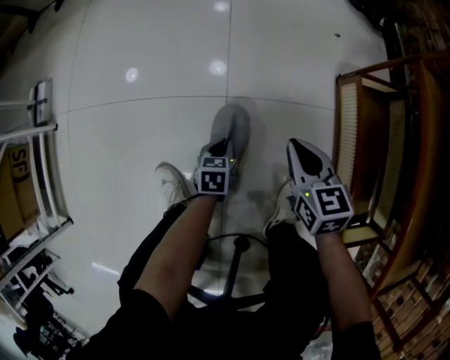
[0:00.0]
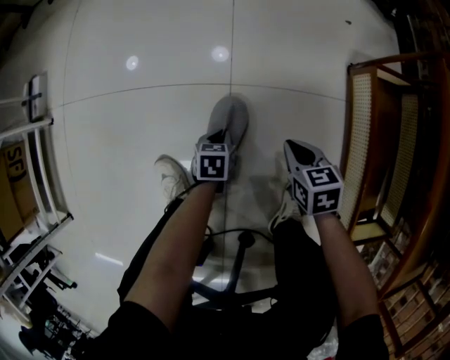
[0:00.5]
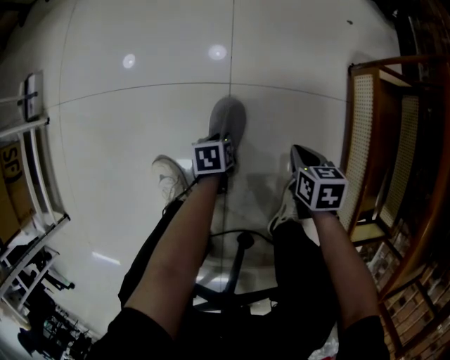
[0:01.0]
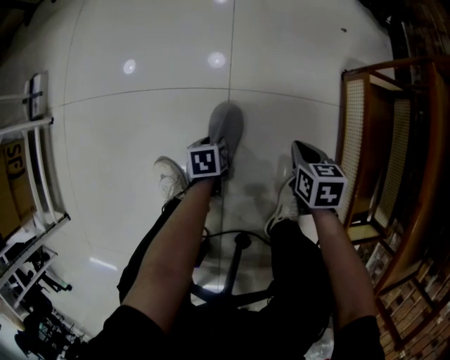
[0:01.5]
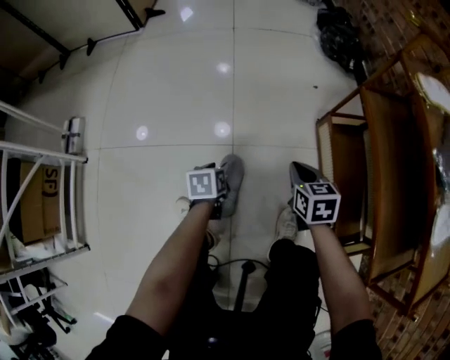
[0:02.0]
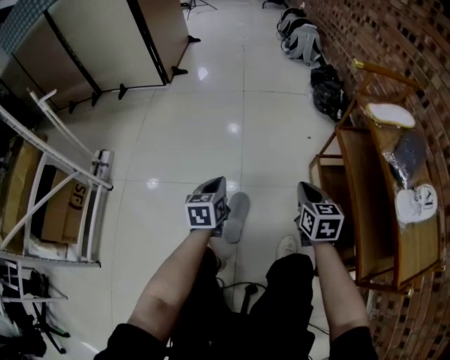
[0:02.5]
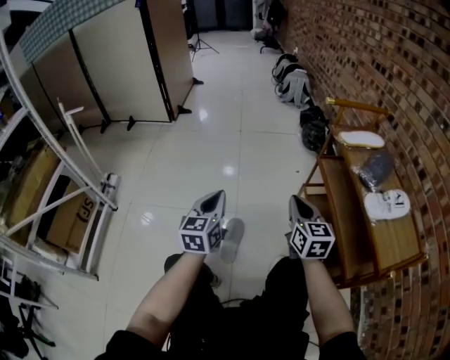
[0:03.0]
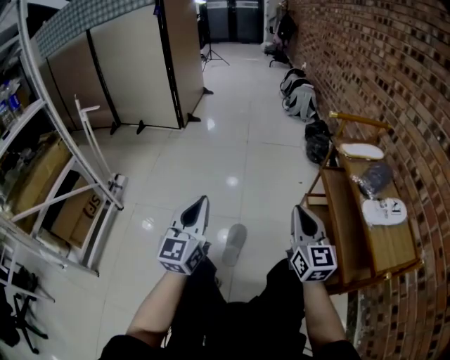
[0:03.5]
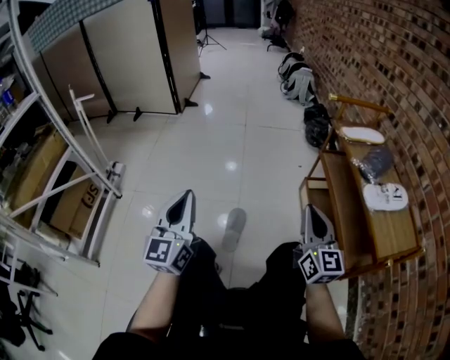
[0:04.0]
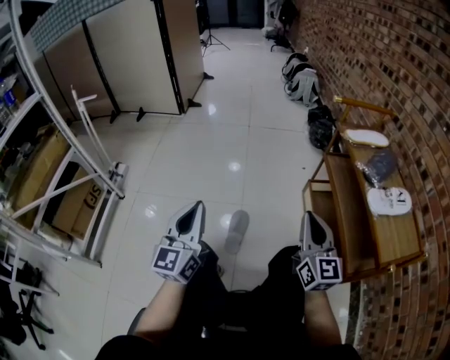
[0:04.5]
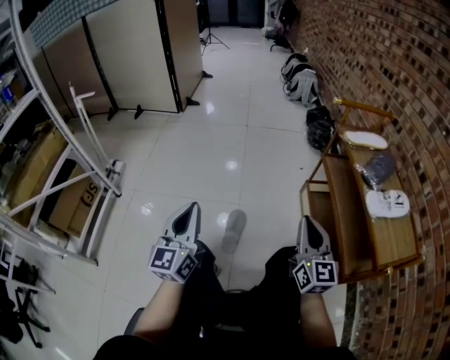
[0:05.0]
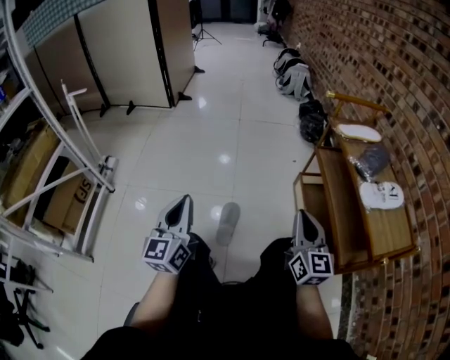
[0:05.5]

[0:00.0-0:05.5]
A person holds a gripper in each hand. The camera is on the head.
0:00.0 to 0:02.0: The left gripper travels upward by roughly 15 cm, and opens its fingers. The right gripper travels downward and back again, approximately 15 cm each way.
0:02.0 to 0:03.5: The right gripper moves upward and backward, some 40 cm, and points its fingers about 50 degrees further upward, while the left gripper travels upward by roughly 50 cm, points its fingers approximately 60 degrees further upward, and closes.
0:03.5 to 0:05.5: The left gripper shifts by some 5 cm. The right gripper shifts by approximately 5 cm.

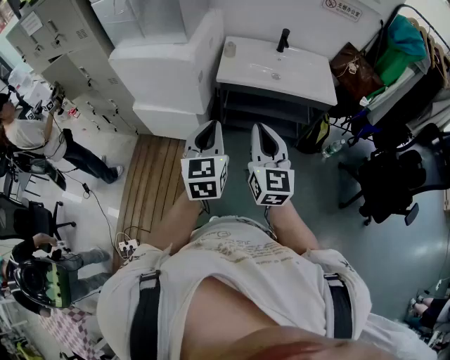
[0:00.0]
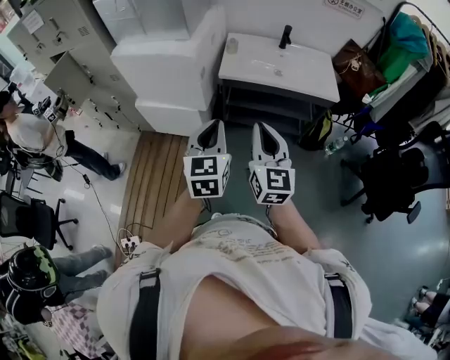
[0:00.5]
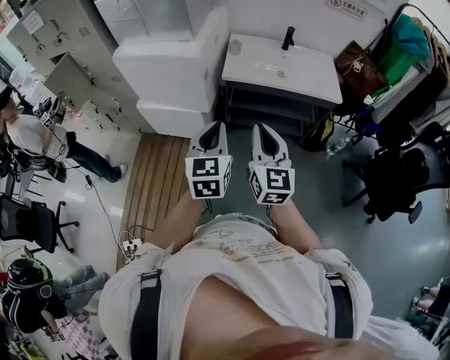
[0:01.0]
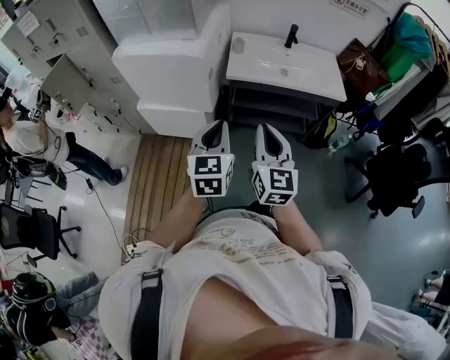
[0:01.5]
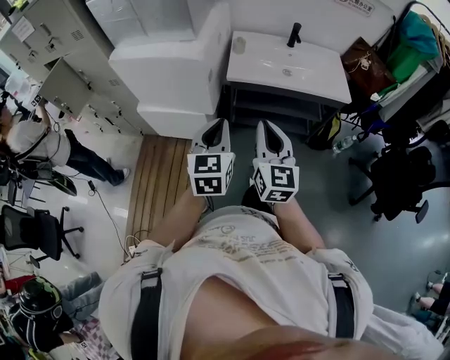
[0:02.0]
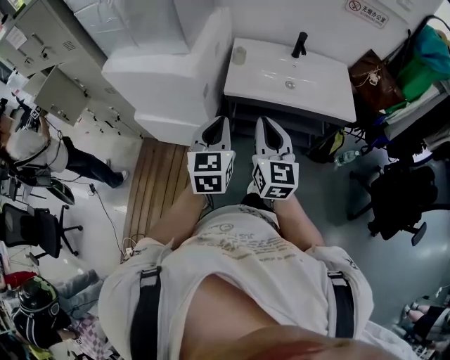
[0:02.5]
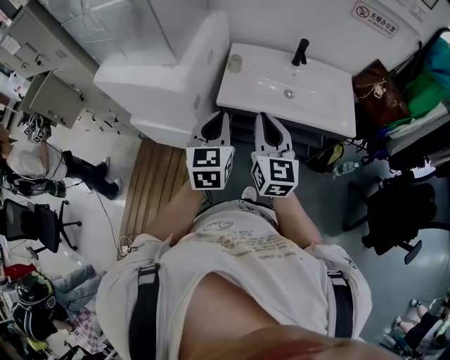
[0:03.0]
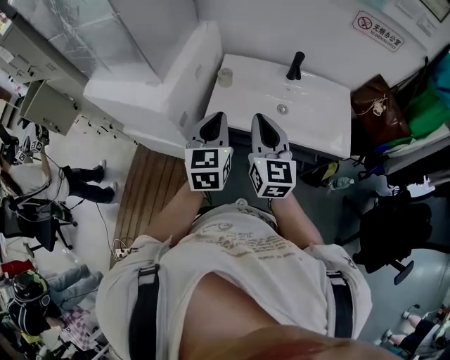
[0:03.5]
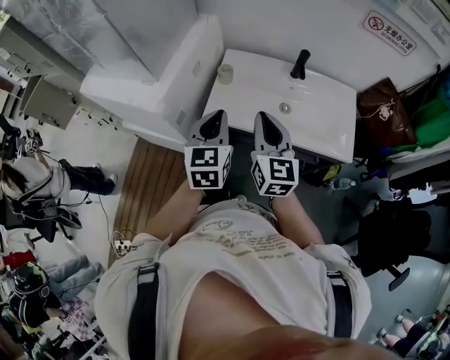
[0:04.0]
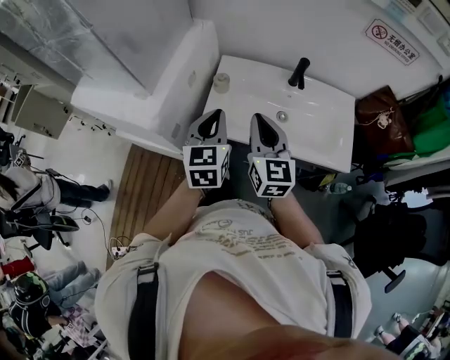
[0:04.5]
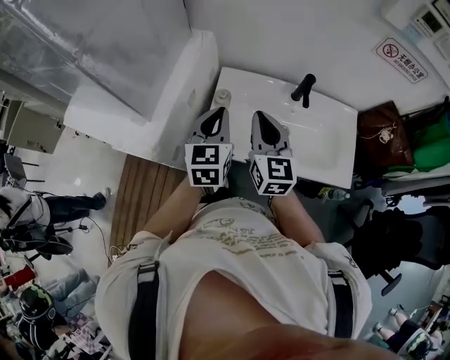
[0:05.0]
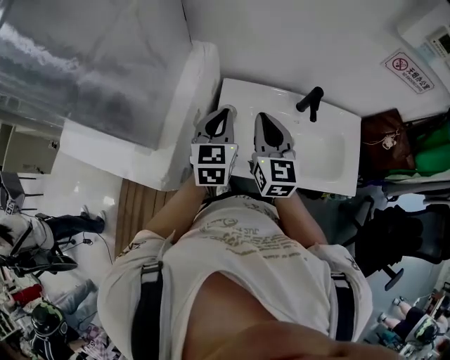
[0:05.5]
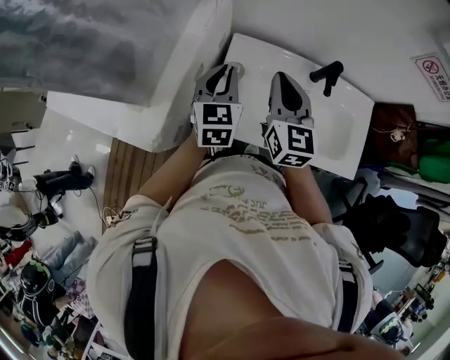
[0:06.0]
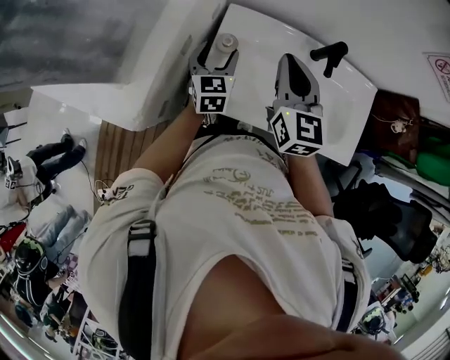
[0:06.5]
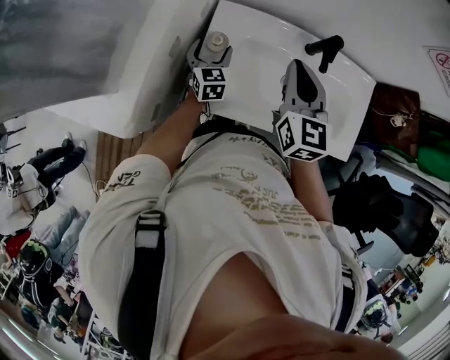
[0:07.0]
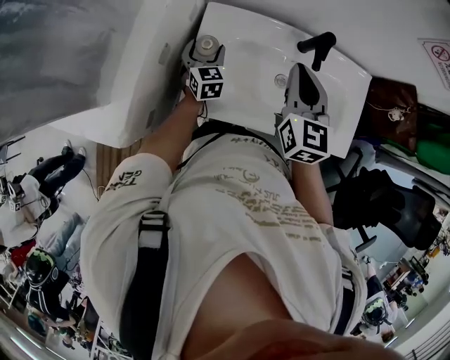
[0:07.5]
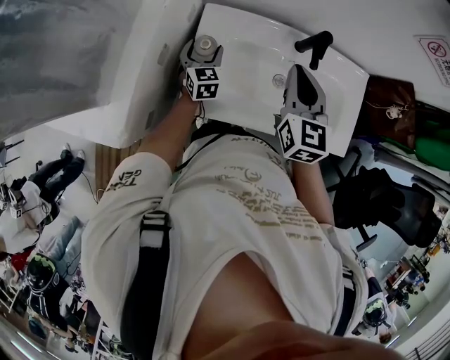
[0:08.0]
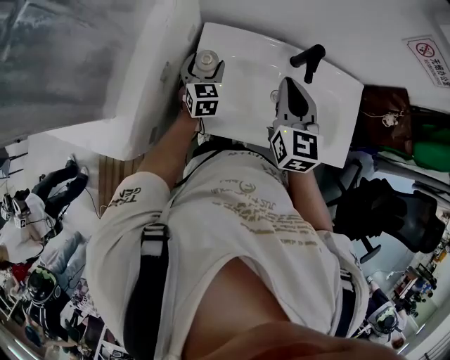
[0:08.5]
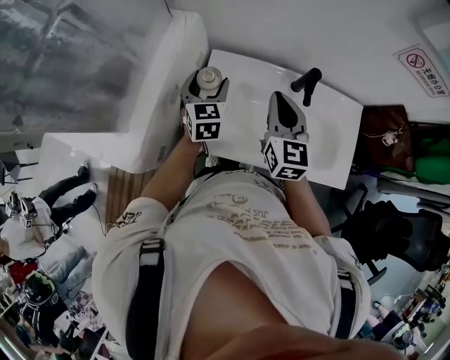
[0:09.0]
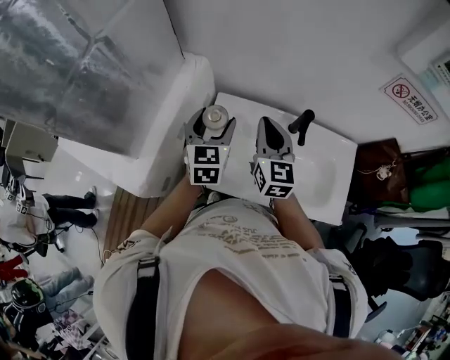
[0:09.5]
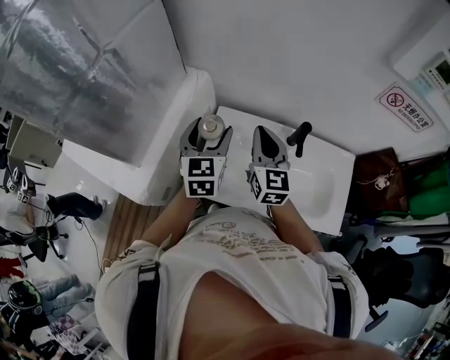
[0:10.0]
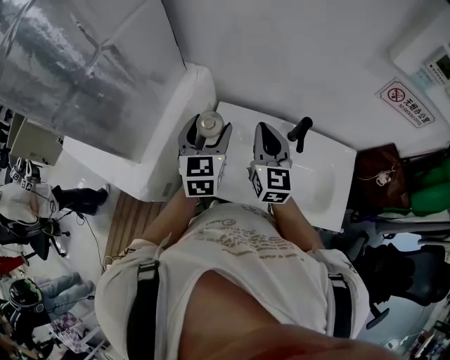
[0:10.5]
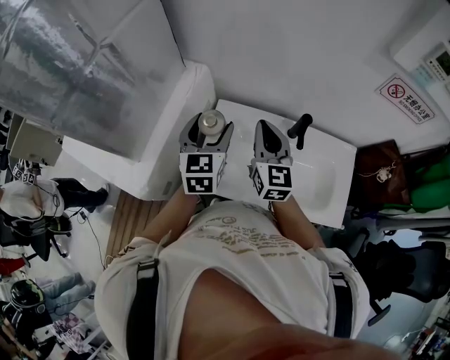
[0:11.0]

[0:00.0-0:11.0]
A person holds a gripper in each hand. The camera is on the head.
0:00.0 to 0:02.0: Both grippers travel together forward, approximately 5 cm.
0:02.0 to 0:03.5: The left gripper is displaced forward and to the right by approximately 30 cm. The right gripper goes approximately 25 cm forward.
0:03.5 to 0:05.5: The two grippers go approximately 25 cm forward.
0:05.5 to 0:07.5: The right gripper heads to the right, covering about 10 cm; the left gripper travels downward by roughly 25 cm, and opens its fingers.
0:07.5 to 0:09.0: The left gripper heads upward, covering roughly 15 cm.
0:09.0 to 0:11.0: The left gripper moves upward and backward, about 15 cm.

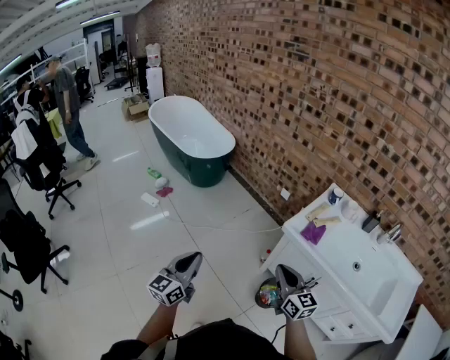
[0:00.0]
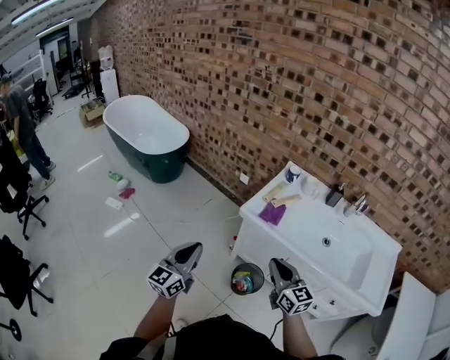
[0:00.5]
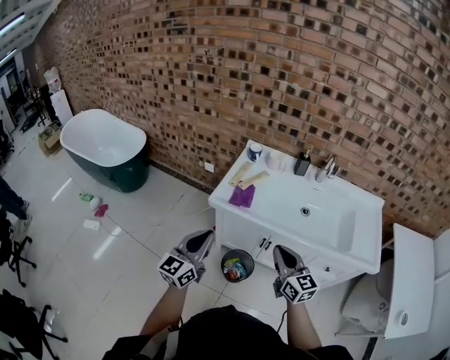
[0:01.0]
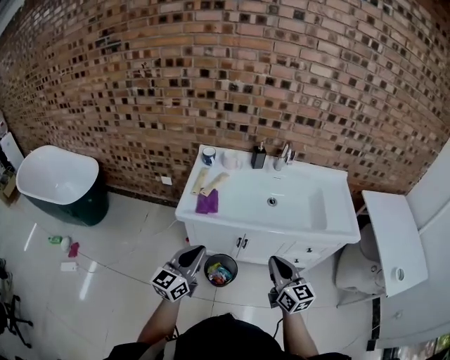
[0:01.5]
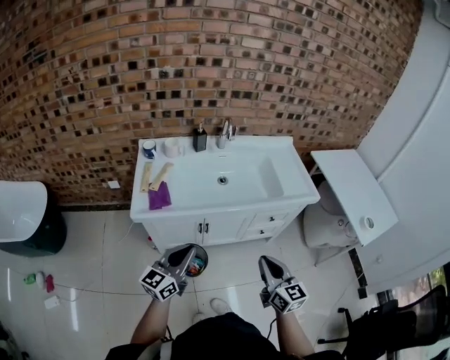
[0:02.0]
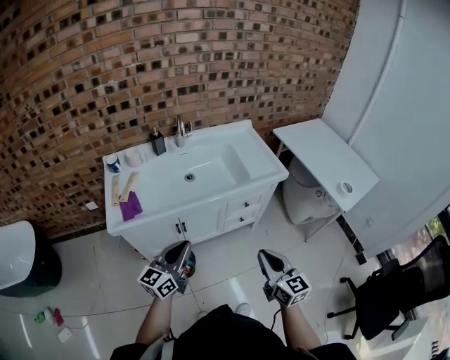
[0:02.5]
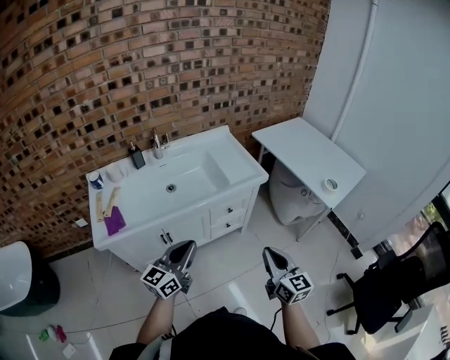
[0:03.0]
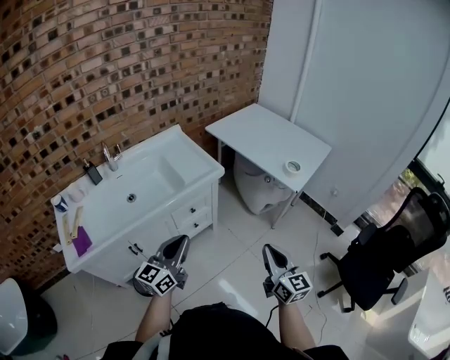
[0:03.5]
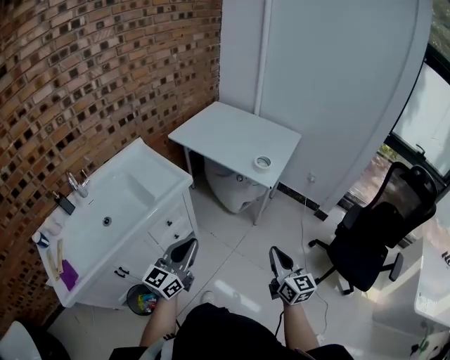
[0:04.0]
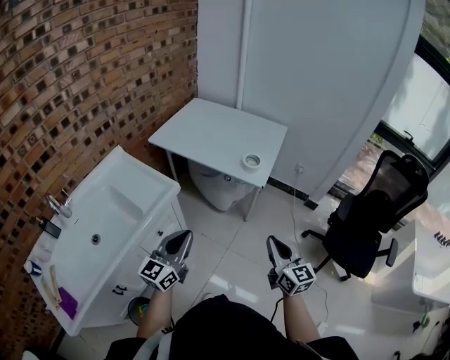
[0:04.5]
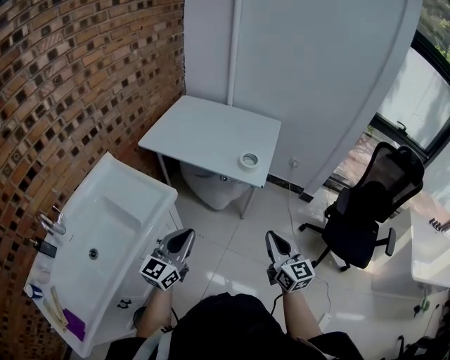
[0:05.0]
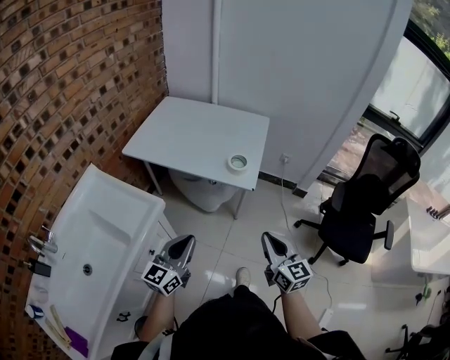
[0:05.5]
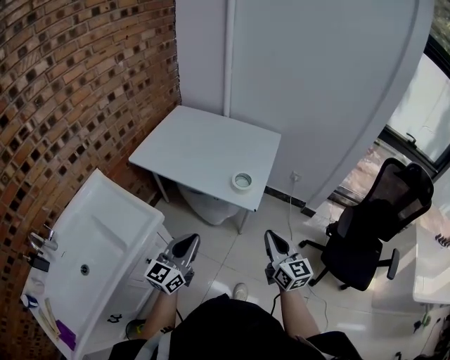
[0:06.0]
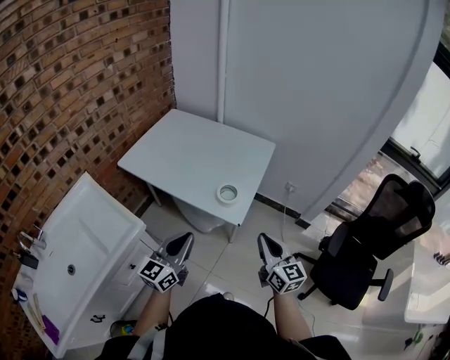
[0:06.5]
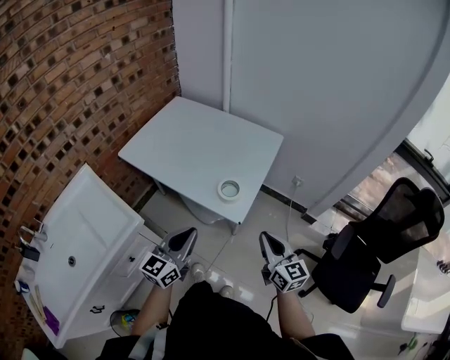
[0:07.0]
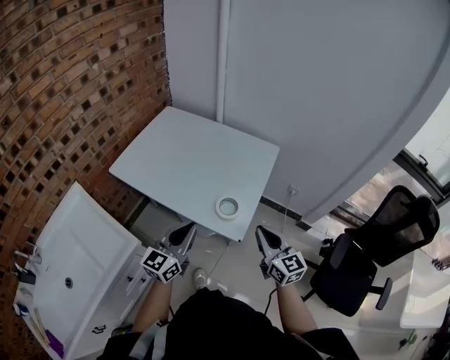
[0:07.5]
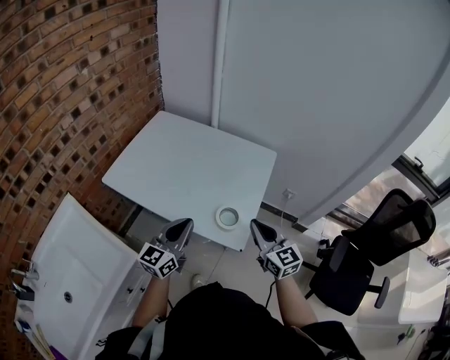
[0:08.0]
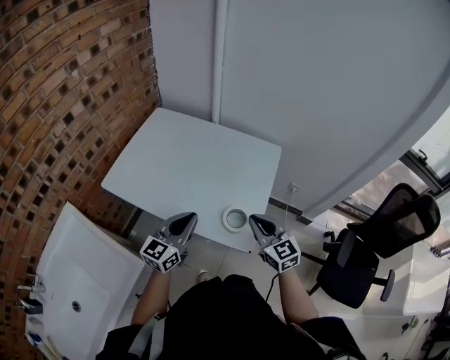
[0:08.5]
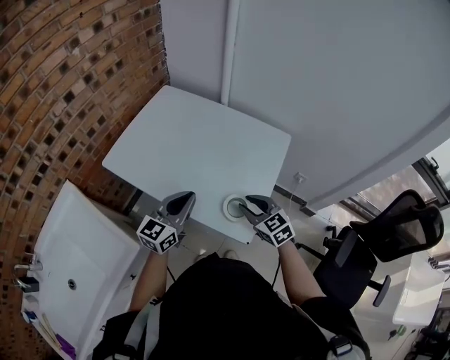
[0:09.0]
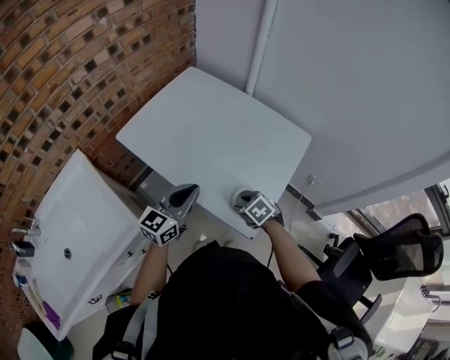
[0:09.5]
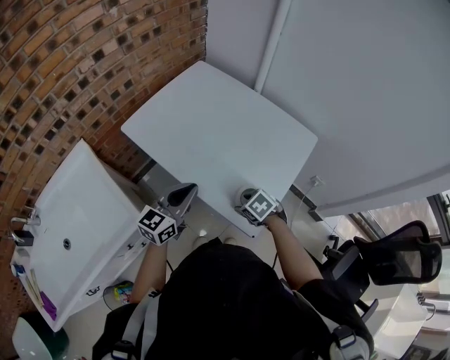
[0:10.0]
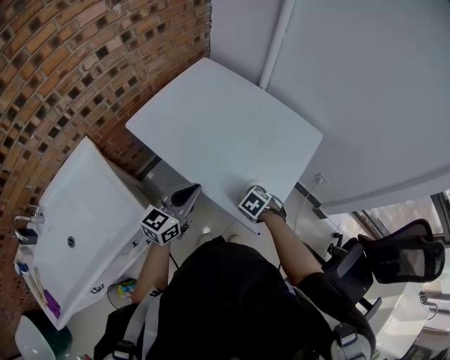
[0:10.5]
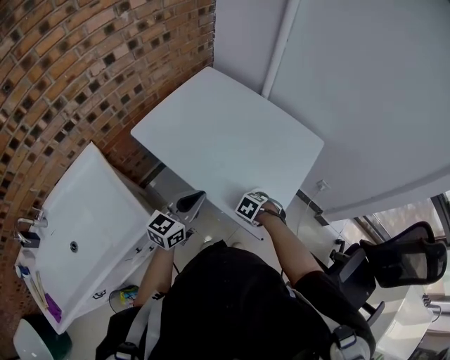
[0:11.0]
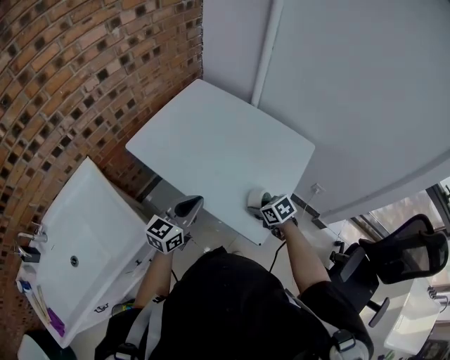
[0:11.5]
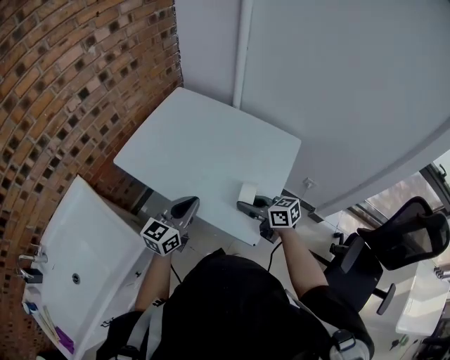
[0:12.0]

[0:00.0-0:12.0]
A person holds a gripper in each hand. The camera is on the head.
0:00.0 to 0:02.0: The left gripper ends up about 40 cm from where it was, and rotates approximately 60 degrees. Meanwhile the right gripper changes place by some 30 cm, and swivels about 60 degrees.
0:02.0 to 0:04.0: The pair of grippers is taken roughly 40 cm. The right gripper swivels roughly 50 degrees; the left gripper turns by about 40 degrees.
0:04.0 to 0:06.0: The grippers both shift forward by about 25 cm.
0:06.0 to 0:08.0: The two grippers go some 25 cm forward.
0:08.0 to 0:10.0: The left gripper ends up roughly 10 cm from where it was. Meanwhile the right gripper is displaced downward by some 20 cm, tips its fingers downward by some 60 degrees, and opens up.
0:10.0 to 0:12.0: The right gripper heads upward, covering some 10 cm, tips its fingers upward by some 50 degrees, and closes.
